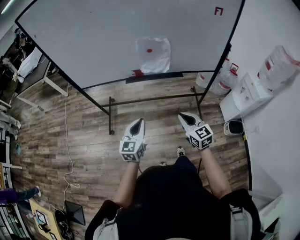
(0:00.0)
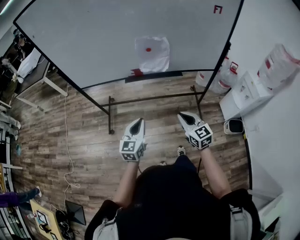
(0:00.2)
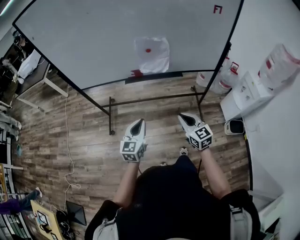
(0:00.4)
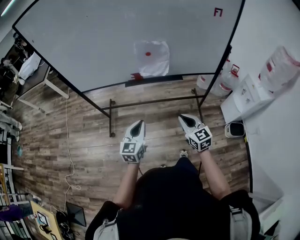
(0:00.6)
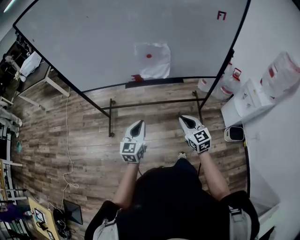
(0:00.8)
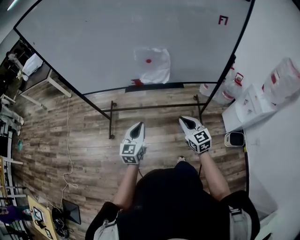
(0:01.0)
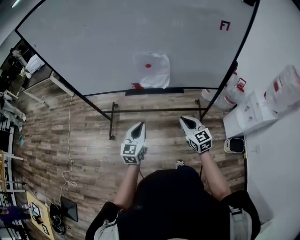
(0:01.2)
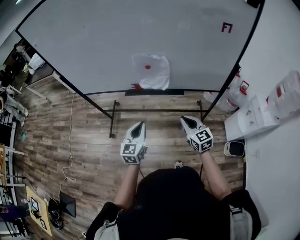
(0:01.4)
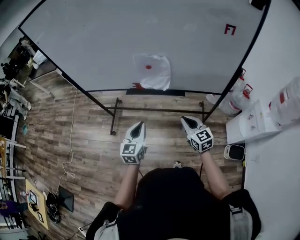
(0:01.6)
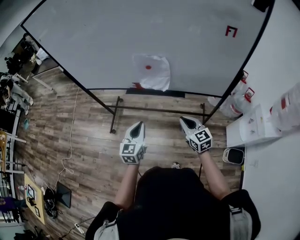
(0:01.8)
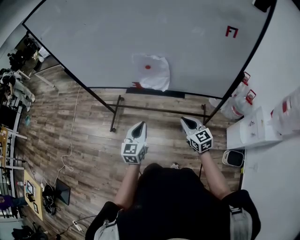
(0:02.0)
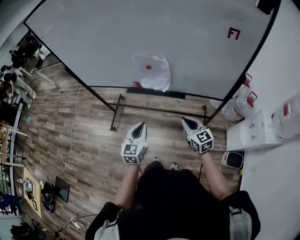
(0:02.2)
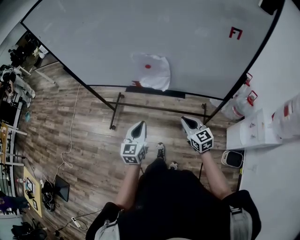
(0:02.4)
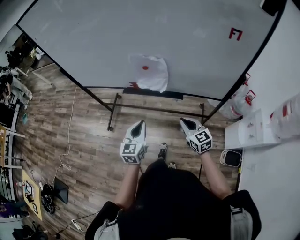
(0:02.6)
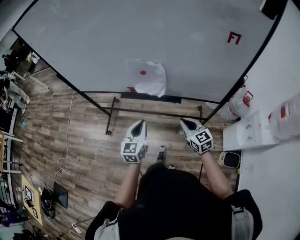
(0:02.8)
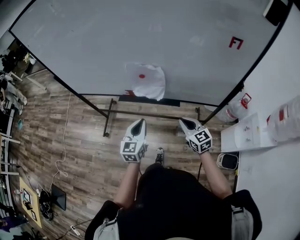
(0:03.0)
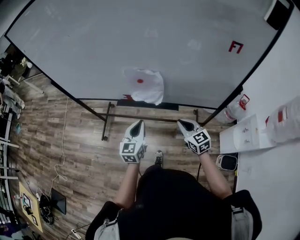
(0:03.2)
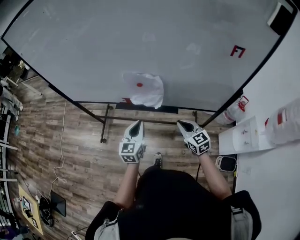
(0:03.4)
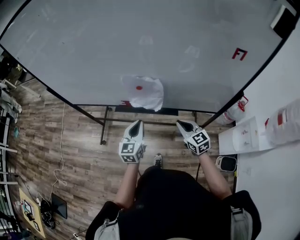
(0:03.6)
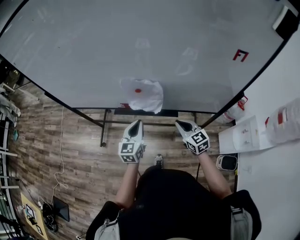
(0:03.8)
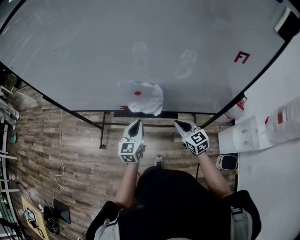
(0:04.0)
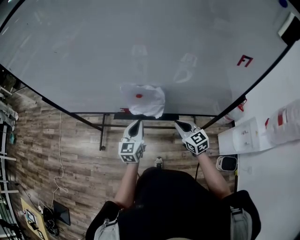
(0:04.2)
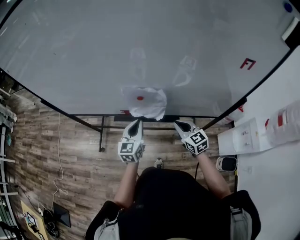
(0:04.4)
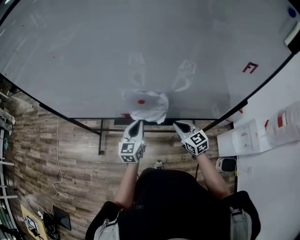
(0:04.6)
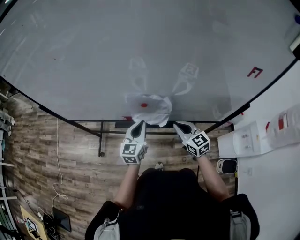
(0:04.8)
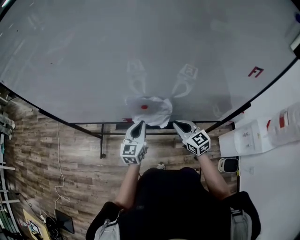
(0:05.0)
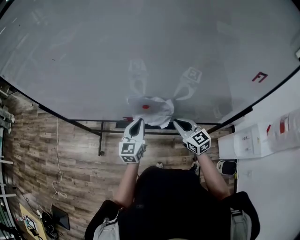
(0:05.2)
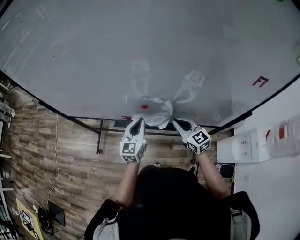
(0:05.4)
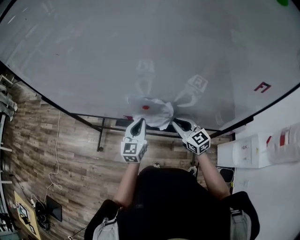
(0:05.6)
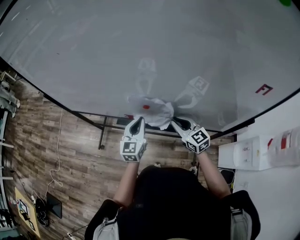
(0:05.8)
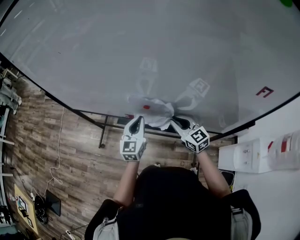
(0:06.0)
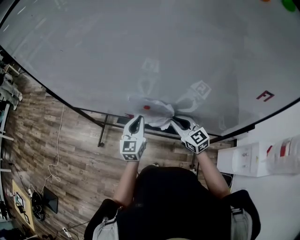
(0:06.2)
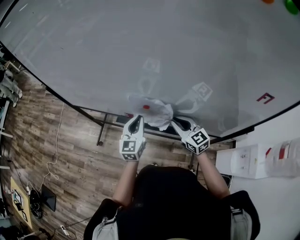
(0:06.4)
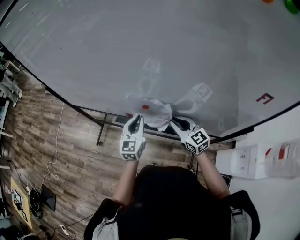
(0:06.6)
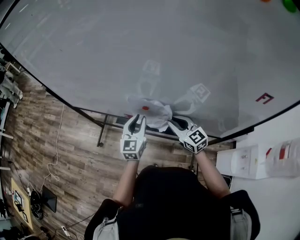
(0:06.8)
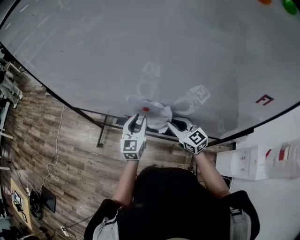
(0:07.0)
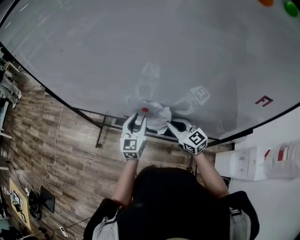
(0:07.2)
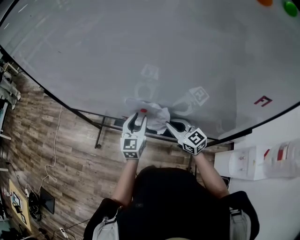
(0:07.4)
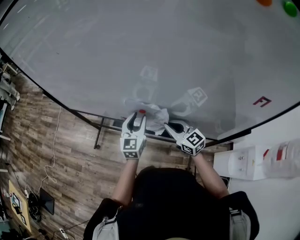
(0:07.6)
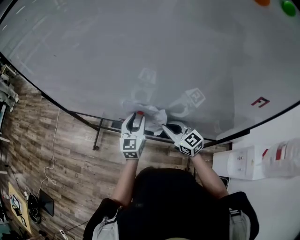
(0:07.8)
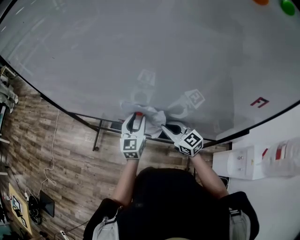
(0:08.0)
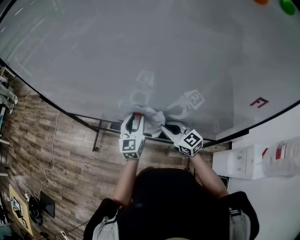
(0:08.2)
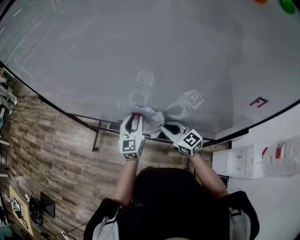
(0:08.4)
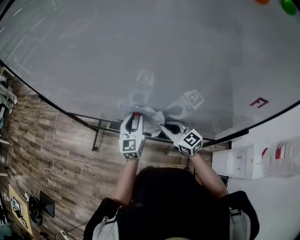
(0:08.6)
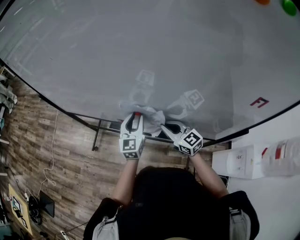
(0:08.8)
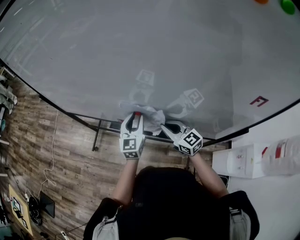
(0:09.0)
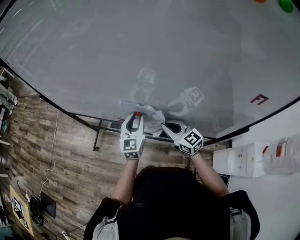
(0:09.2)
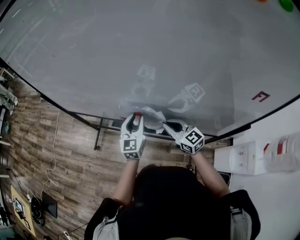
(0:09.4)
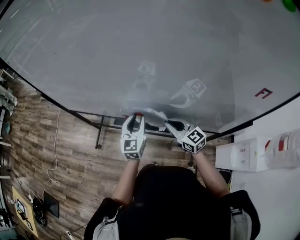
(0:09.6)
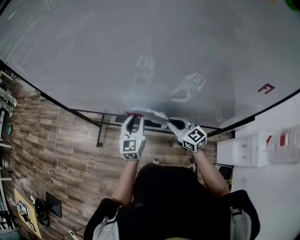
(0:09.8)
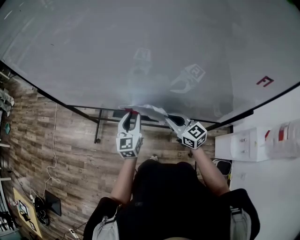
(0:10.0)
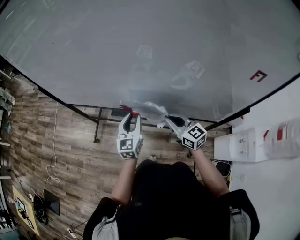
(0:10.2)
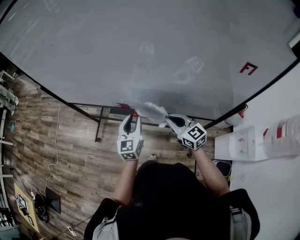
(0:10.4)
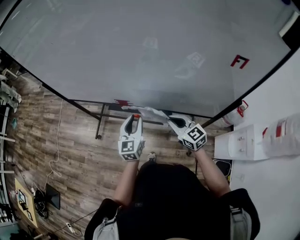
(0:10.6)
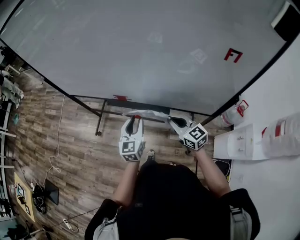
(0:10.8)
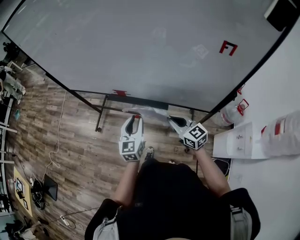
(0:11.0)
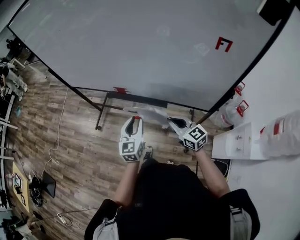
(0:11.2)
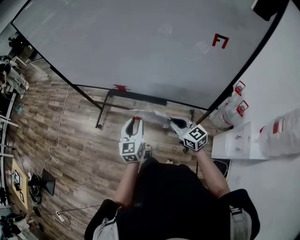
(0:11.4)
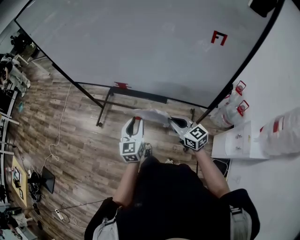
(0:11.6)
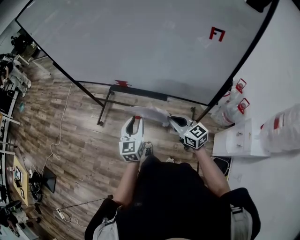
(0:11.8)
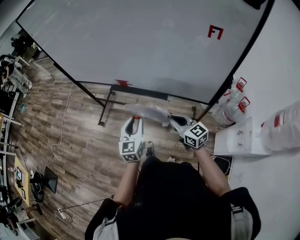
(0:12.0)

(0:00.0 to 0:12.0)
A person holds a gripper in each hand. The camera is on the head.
0:00.0 - 0:01.6: The left gripper goes about 15 cm to the right and forward. The right gripper is displaced forward and to the right by roughly 20 cm.
0:01.6 - 0:03.0: The grippers both shift forward and to the right by about 10 cm.
0:03.0 - 0:04.4: Both grippers move forward, approximately 15 cm.
0:04.4 - 0:06.0: Both grippers travel together forward, approximately 5 cm.
0:06.0 - 0:07.6: The left gripper opens up.
0:07.6 - 0:09.0: Both grippers stay put.
0:09.0 - 0:10.4: The two grippers go some 10 cm backward.
0:10.4 - 0:12.0: Both grippers move backward, about 20 cm.

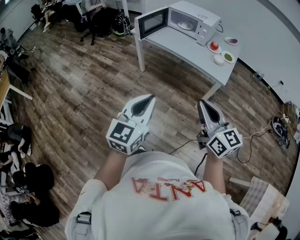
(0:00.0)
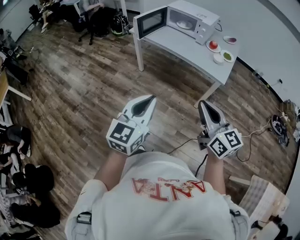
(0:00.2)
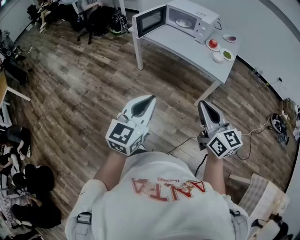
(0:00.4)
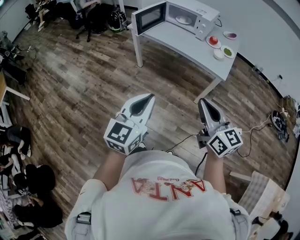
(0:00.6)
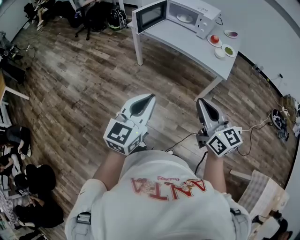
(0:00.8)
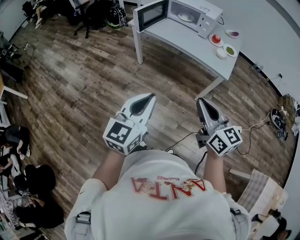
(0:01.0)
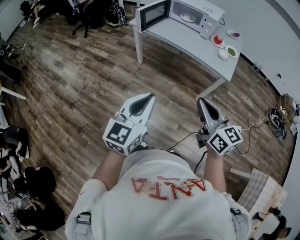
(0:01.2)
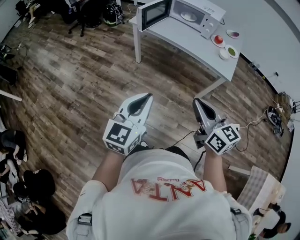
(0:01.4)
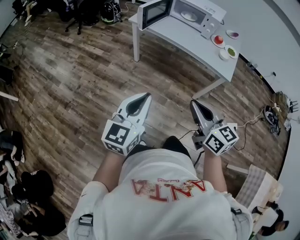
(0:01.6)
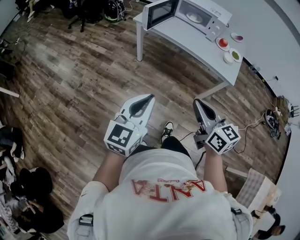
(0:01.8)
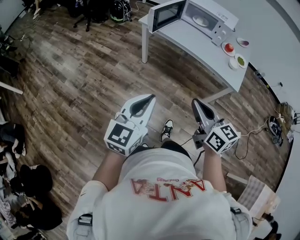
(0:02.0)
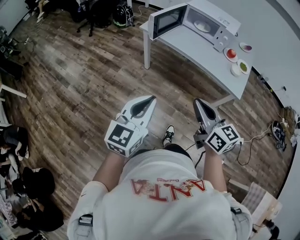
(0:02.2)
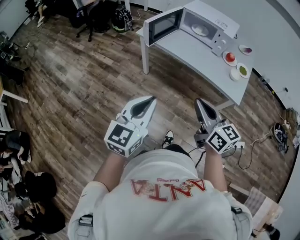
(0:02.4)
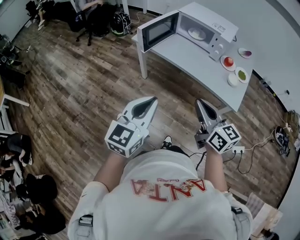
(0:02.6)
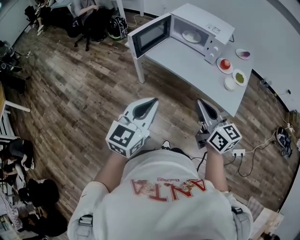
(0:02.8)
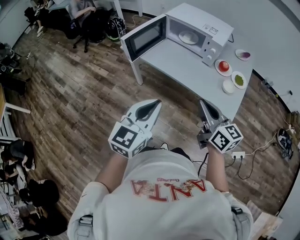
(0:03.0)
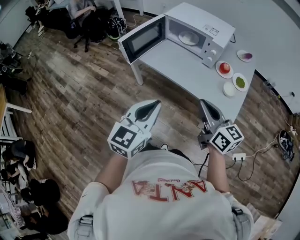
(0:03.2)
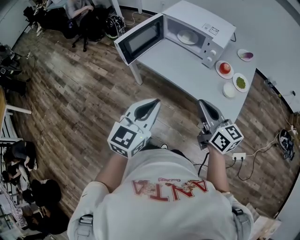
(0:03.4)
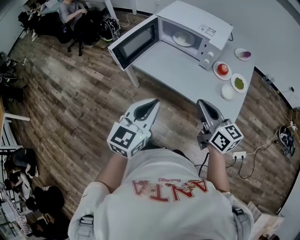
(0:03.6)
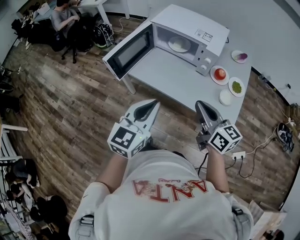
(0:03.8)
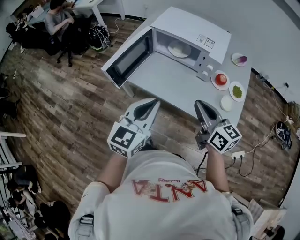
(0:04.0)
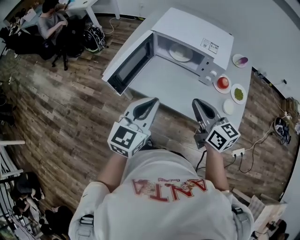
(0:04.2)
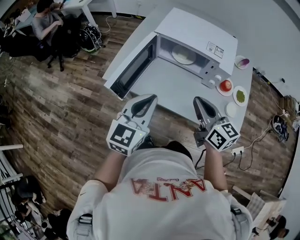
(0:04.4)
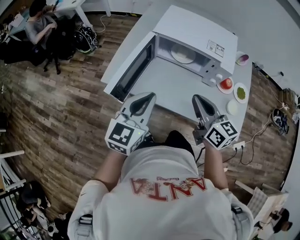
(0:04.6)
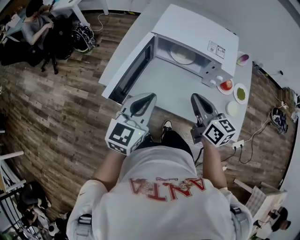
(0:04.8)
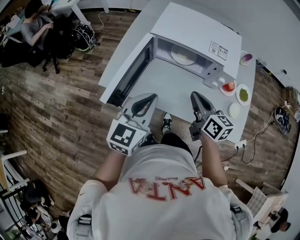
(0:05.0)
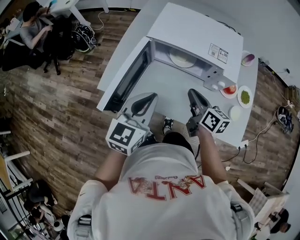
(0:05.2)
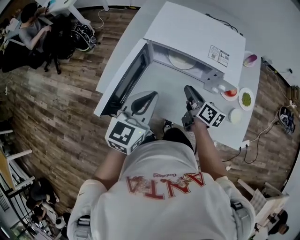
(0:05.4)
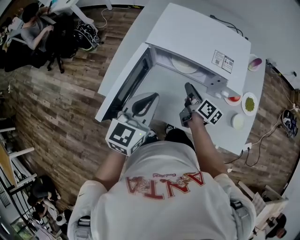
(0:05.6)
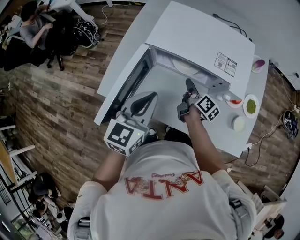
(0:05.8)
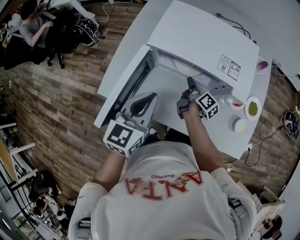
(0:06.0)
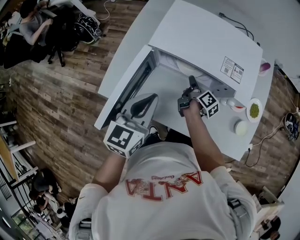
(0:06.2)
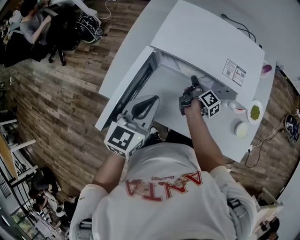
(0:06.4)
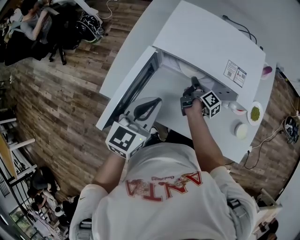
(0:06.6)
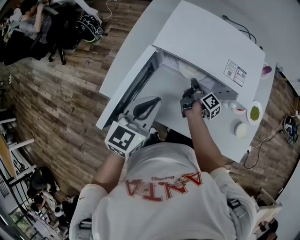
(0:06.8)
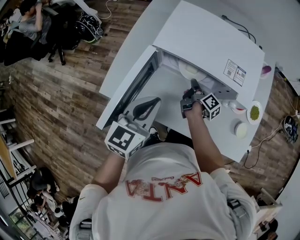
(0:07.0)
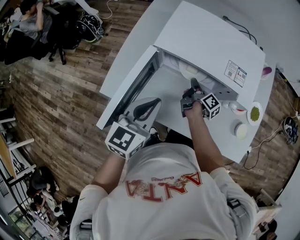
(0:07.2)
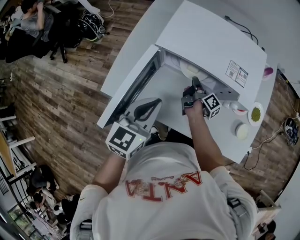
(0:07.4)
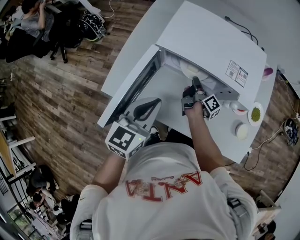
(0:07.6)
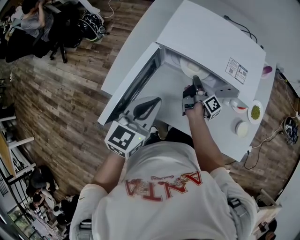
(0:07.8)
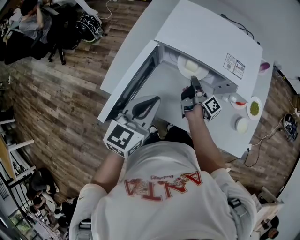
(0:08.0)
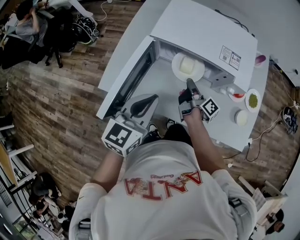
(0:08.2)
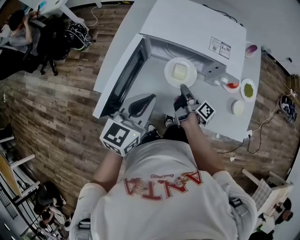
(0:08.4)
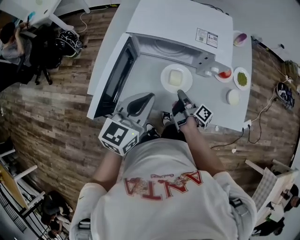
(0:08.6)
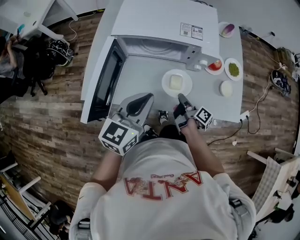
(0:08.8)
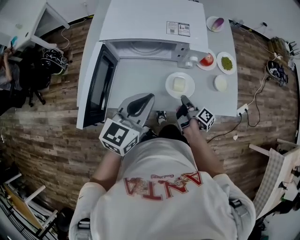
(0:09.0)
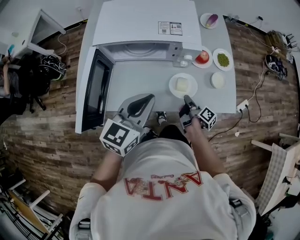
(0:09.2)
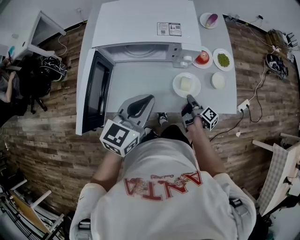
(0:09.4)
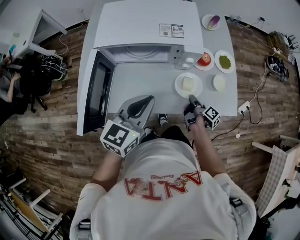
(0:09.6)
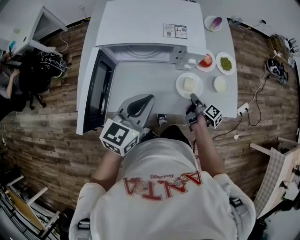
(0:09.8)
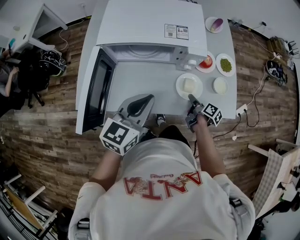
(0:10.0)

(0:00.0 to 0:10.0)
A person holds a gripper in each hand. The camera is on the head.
0:00.0 - 0:01.4: Both grippers move to the left, some 10 cm.
0:01.4 - 0:02.8: The right gripper is displaced forward by roughly 25 cm. Meanwhile the left gripper moves forward and to the right, some 25 cm.
0:02.8 - 0:04.2: The two grippers go approximately 25 cm forward.
0:04.2 - 0:05.8: The left gripper heads forward, covering roughly 20 cm. Meanwhile the right gripper moves forward and downward, about 35 cm, twists some 50 degrees clockwise, seen from behind, and opens.
0:05.8 - 0:07.2: The right gripper shifts some 5 cm downward.
0:07.2 - 0:08.6: The right gripper moves backward, roughly 15 cm. The left gripper moves backward, approximately 5 cm.
0:08.6 - 0:10.0: The right gripper is displaced to the right by about 15 cm, changes its angle by some 30 degrees, and opens up. The left gripper is displaced to the right by roughly 5 cm.

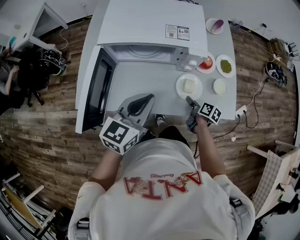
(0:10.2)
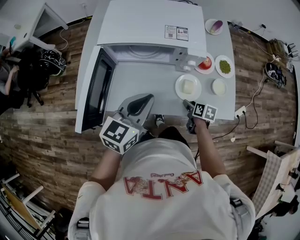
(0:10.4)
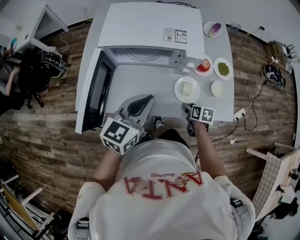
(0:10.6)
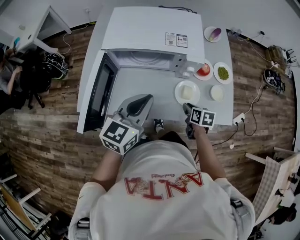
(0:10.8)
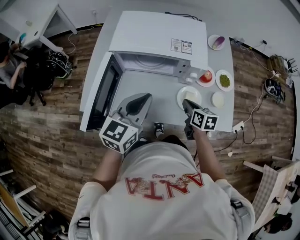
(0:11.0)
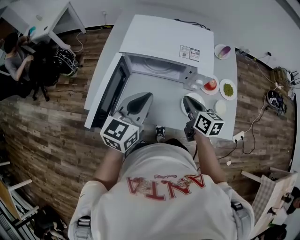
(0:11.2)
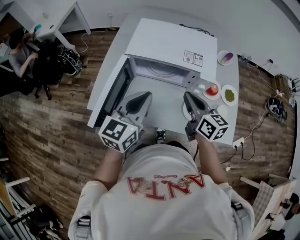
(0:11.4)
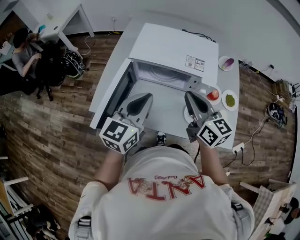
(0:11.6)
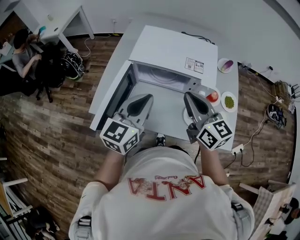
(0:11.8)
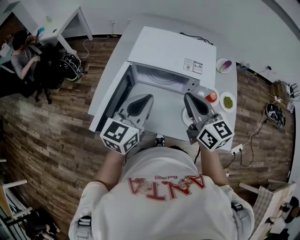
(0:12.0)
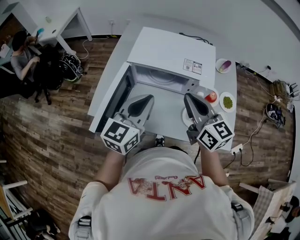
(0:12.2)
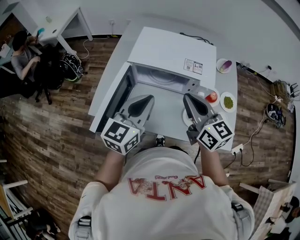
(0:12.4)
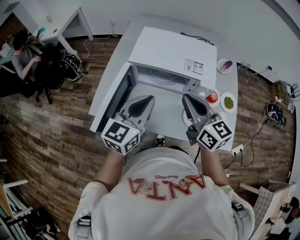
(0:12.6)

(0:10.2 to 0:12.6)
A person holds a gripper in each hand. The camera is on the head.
0:10.2 - 0:11.4: The left gripper shifts some 10 cm upward and to the left, while the right gripper moves upward and to the left, some 30 cm, angles its fingers upward, by some 30 degrees, and closes.
0:11.4 - 0:12.6: The right gripper goes approximately 5 cm upward.
